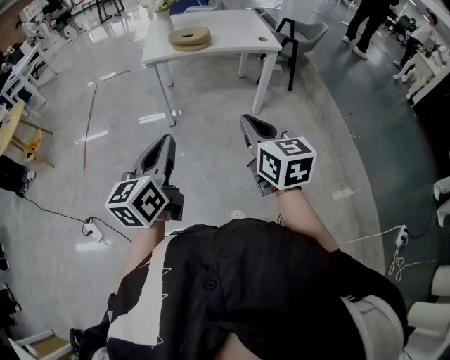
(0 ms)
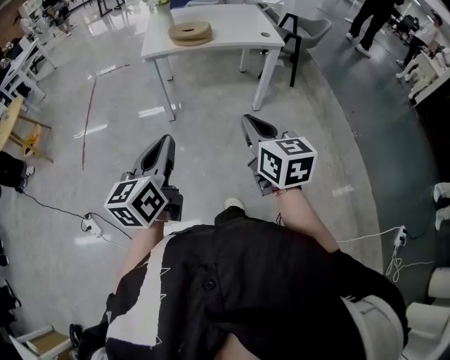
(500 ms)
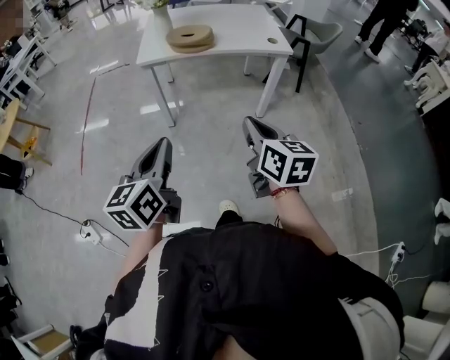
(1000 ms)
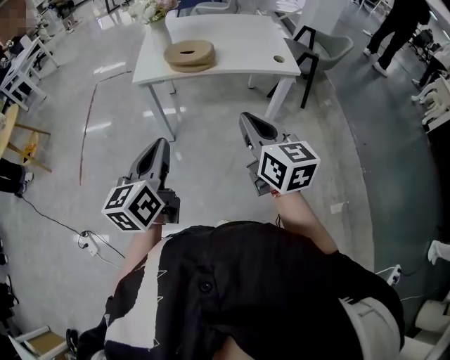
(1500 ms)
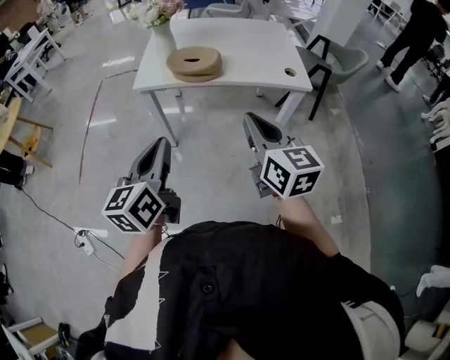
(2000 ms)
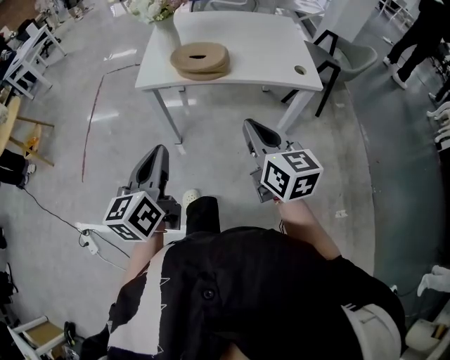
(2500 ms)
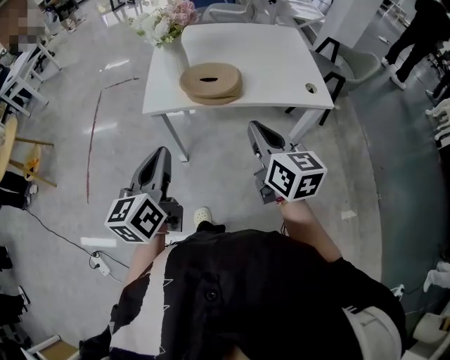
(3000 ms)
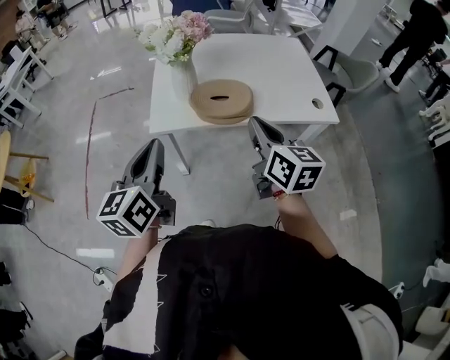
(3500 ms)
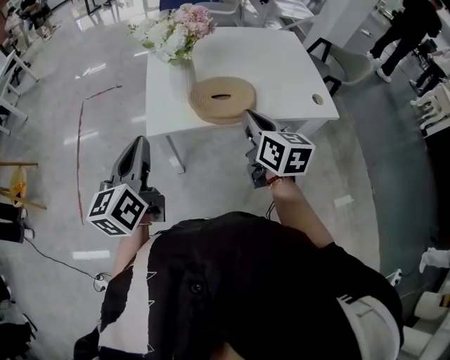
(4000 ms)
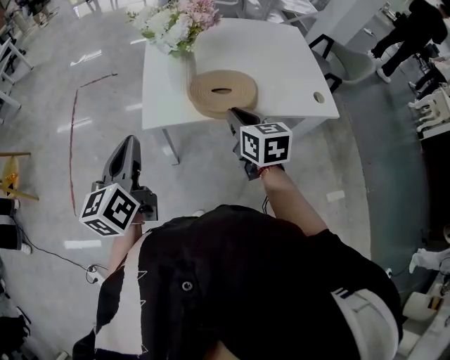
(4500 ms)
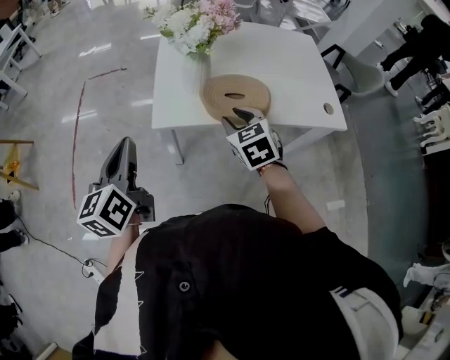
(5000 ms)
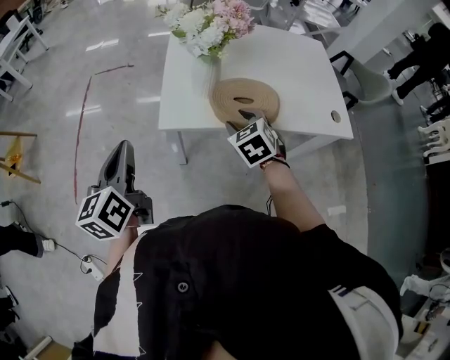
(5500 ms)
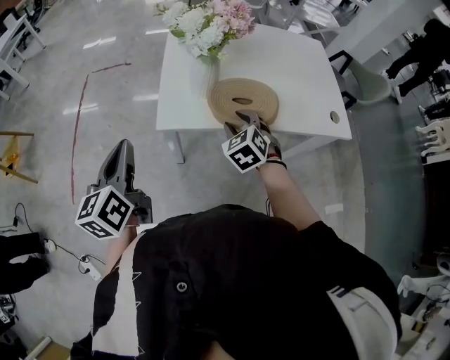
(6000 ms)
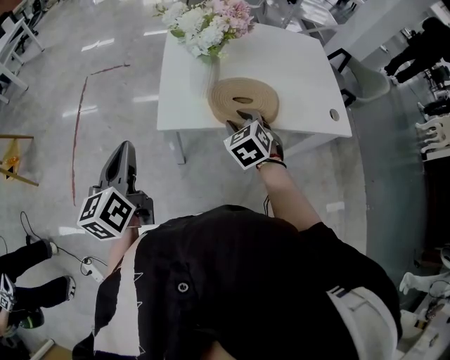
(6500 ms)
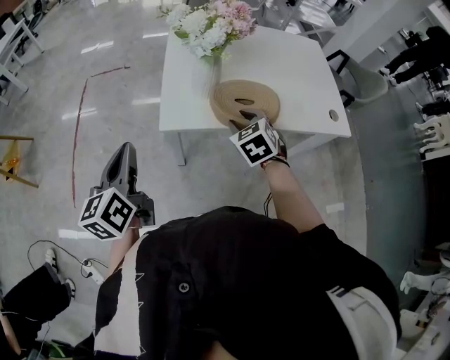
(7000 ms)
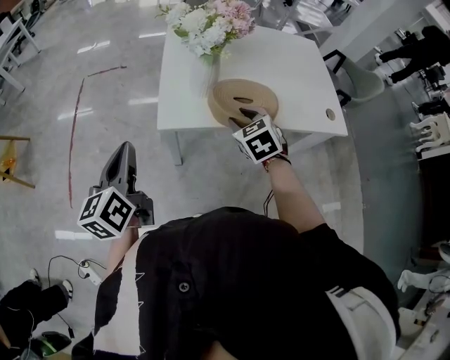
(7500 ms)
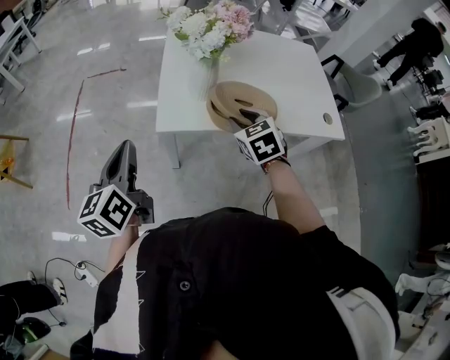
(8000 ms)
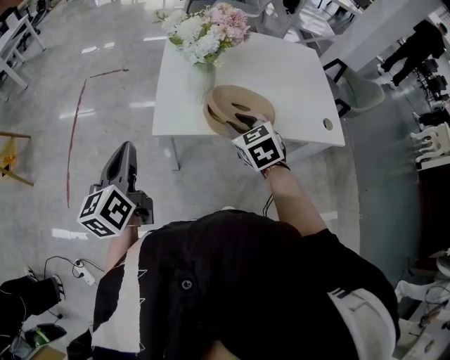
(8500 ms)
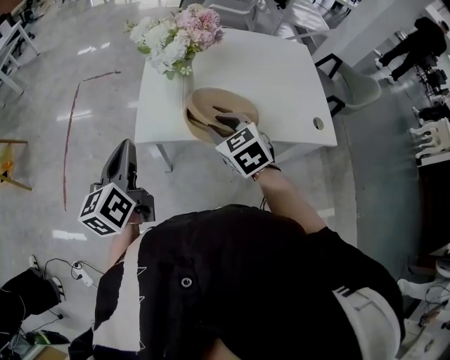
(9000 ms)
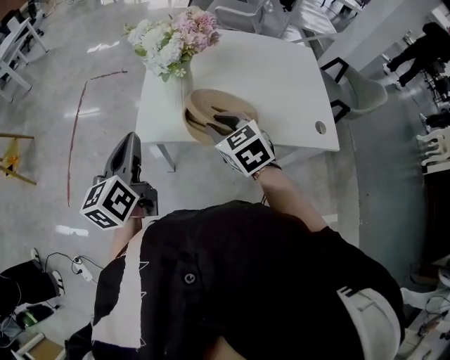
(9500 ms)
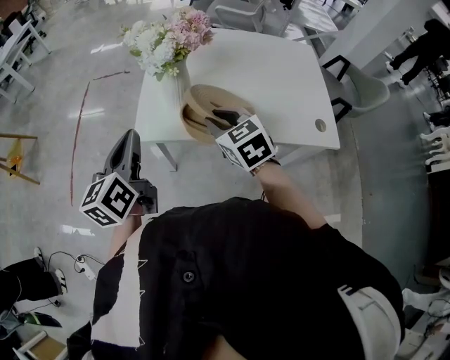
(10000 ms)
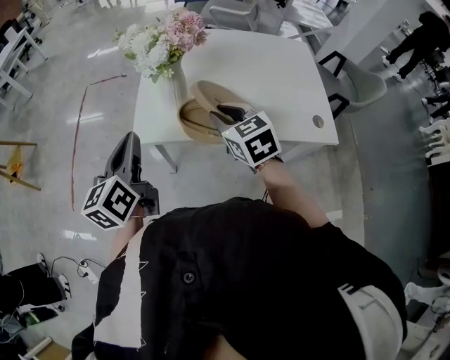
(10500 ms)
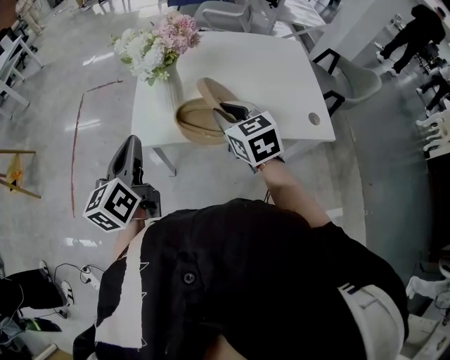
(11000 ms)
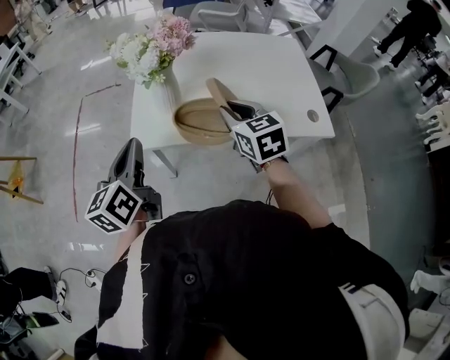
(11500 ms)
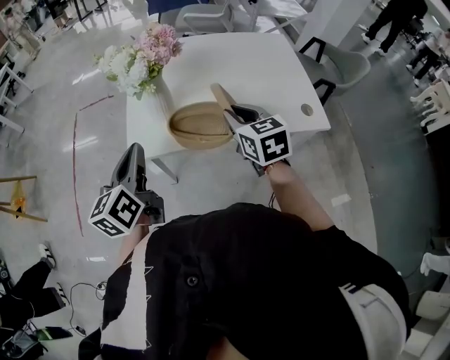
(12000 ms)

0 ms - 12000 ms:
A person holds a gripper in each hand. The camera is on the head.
0 ms - 2000 ms: The grippers both shift forward by about 30 cm.
2000 ms - 4000 ms: Both grippers travel together forward and to the left, some 30 cm.
4000 ms - 6000 ms: The left gripper goes some 10 cm to the left; the right gripper is displaced downward, forward and to the left by about 15 cm, rotates around the line of its fingers by roughly 50 degrees, counterclockwise from behind, and opens.
6000 ms - 8000 ms: The right gripper ends up about 5 cm from where it was.
8000 ms - 10000 ms: The right gripper moves about 5 cm. Meanwhile the left gripper shifts roughly 10 cm to the right.
10000 ms - 12000 ms: The right gripper moves to the right, about 10 cm, and swivels about 20 degrees.

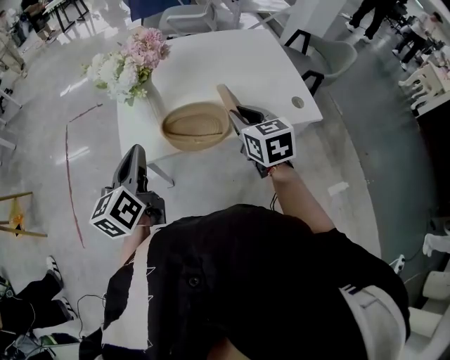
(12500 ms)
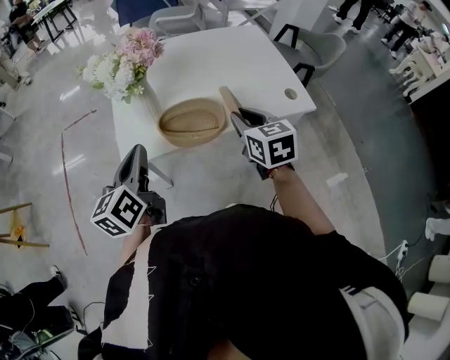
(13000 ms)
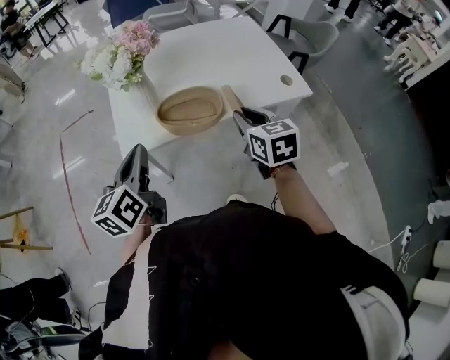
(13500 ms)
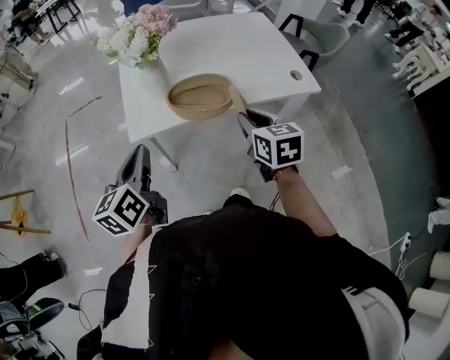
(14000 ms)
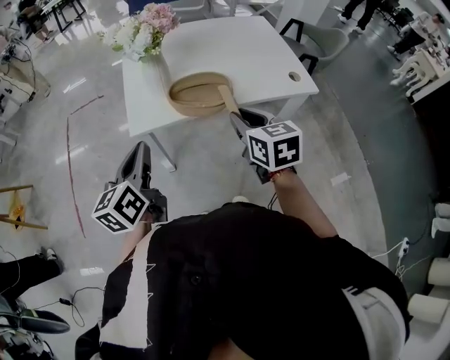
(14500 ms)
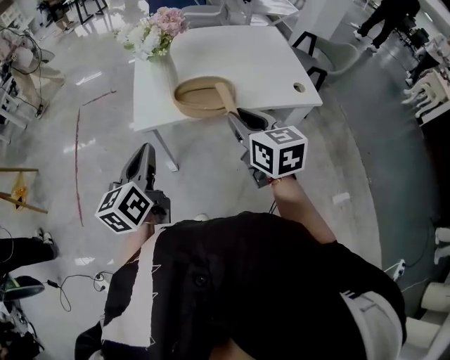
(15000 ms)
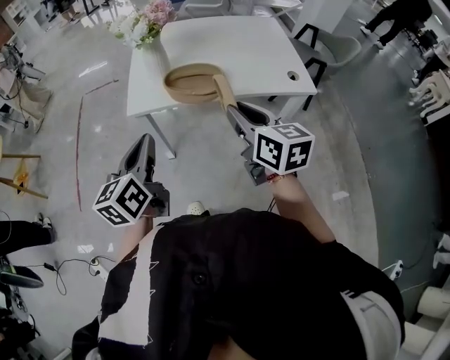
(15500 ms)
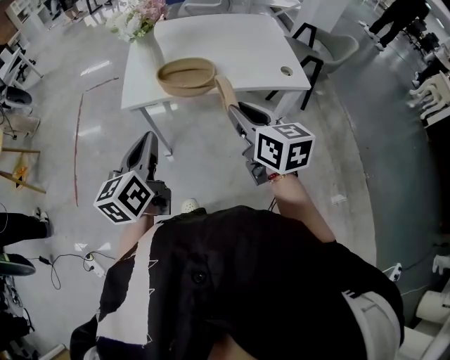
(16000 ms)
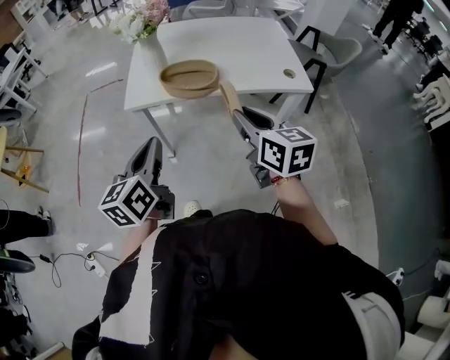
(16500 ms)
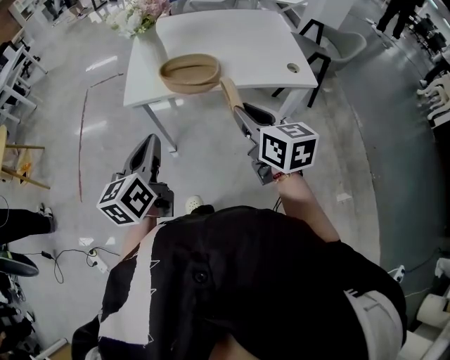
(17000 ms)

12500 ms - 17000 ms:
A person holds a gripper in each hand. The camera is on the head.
12500 ms - 14500 ms: The two grippers go about 10 cm backward.
14500 ms - 17000 ms: Both grippers move backward and to the right, roughly 15 cm.

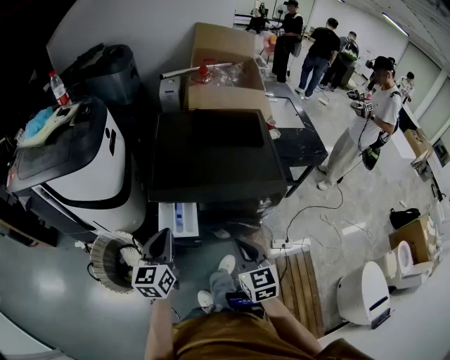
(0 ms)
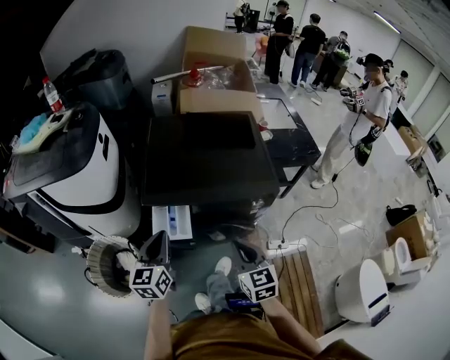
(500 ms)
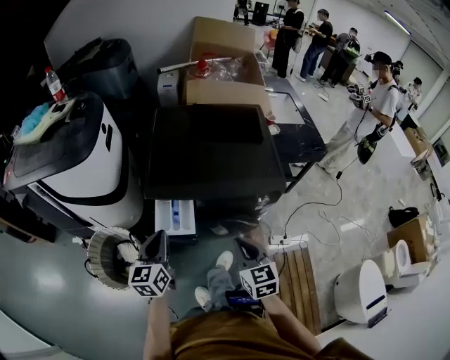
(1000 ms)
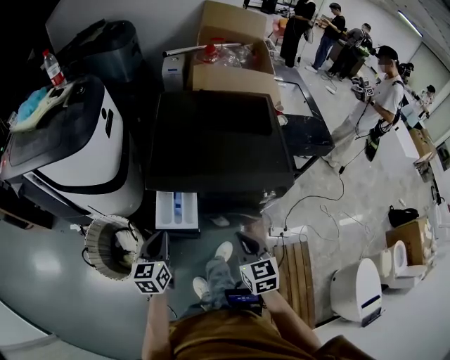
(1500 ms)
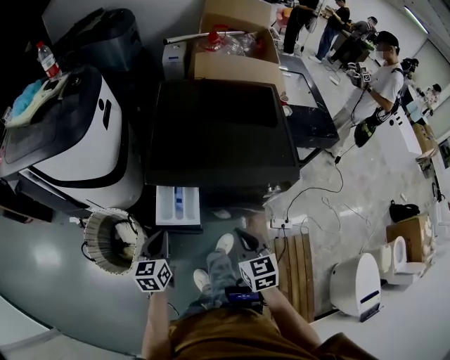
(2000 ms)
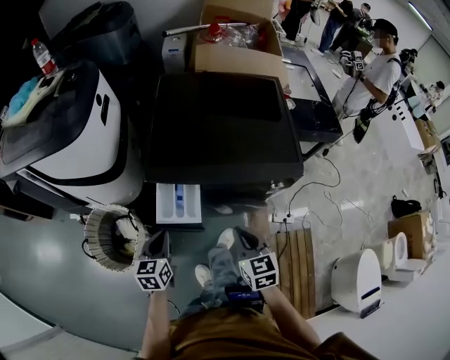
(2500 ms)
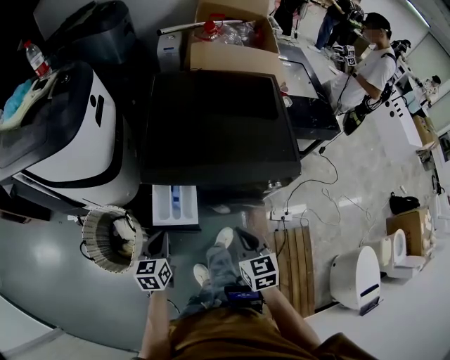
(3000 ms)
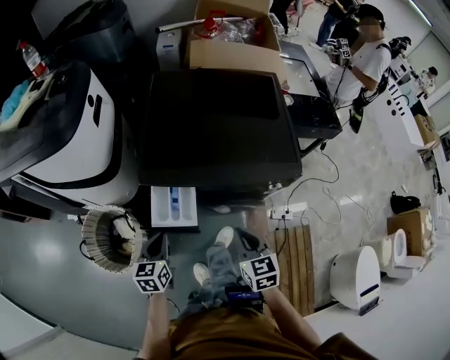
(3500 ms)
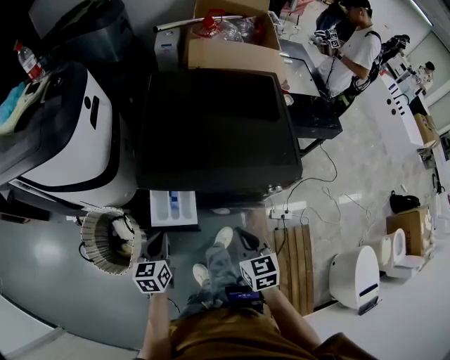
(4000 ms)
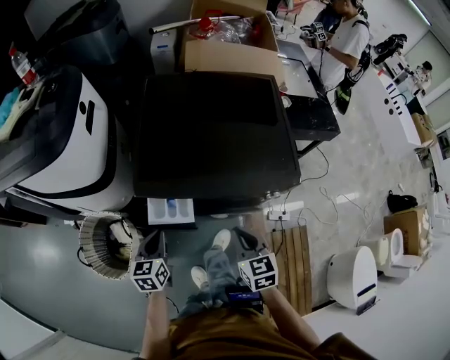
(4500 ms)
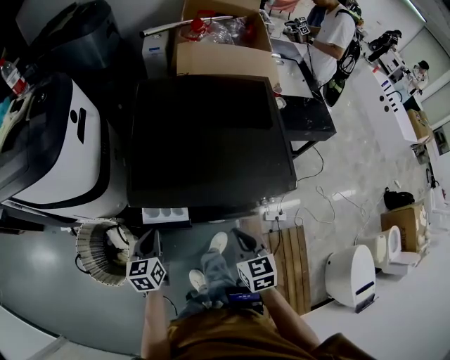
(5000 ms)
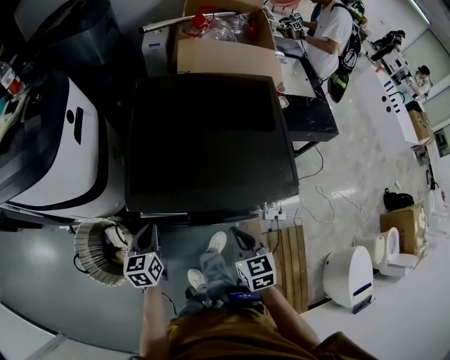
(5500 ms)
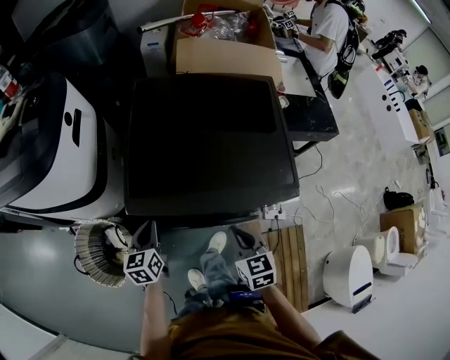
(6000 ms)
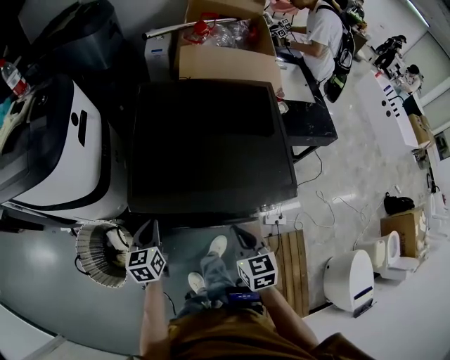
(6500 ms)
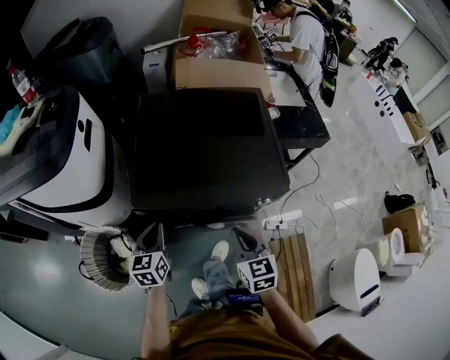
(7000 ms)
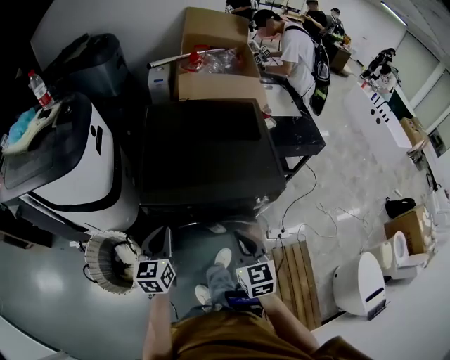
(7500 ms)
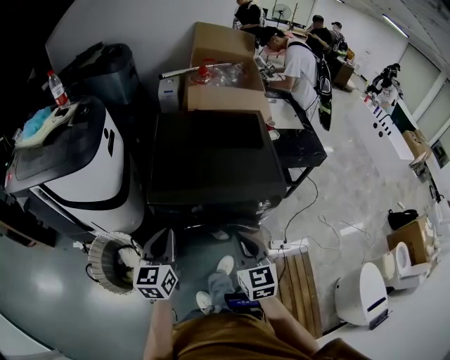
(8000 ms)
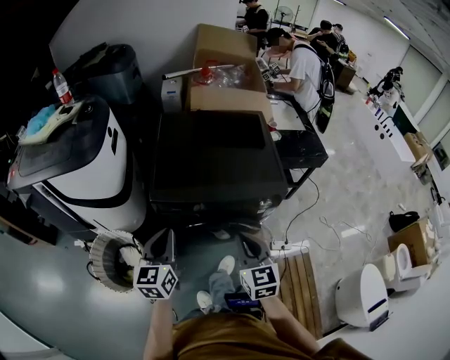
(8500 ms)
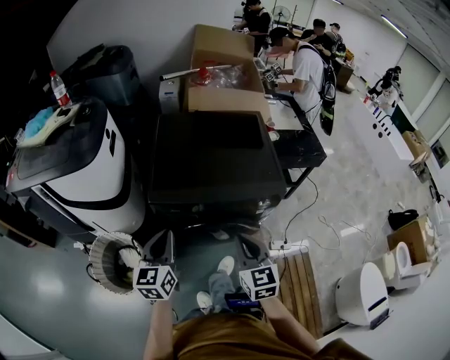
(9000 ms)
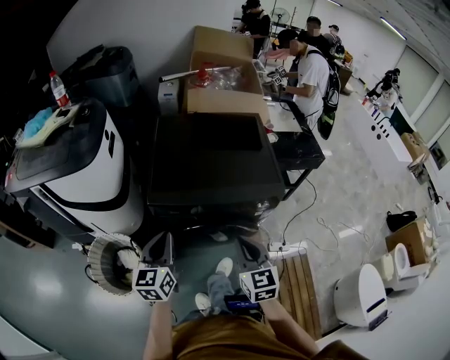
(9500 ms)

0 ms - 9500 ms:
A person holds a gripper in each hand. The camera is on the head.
0 ms - 2000 ms: The left gripper moves downward, some 15 cm. Meanwhile the right gripper travels downward by roughly 5 cm.
2000 ms - 4000 ms: The grippers make only small movements.
4000 ms - 5500 ms: The two grippers go approximately 10 cm forward.
5500 ms - 7500 ms: The two grippers go approximately 15 cm upward and backward.
7500 ms - 9500 ms: The left gripper is displaced backward by about 5 cm.

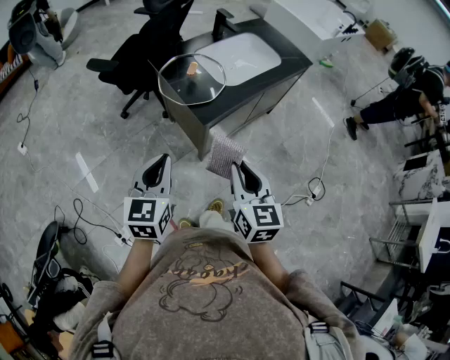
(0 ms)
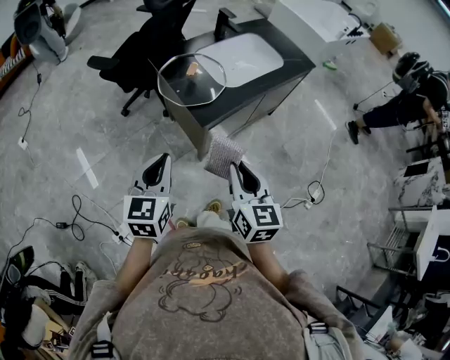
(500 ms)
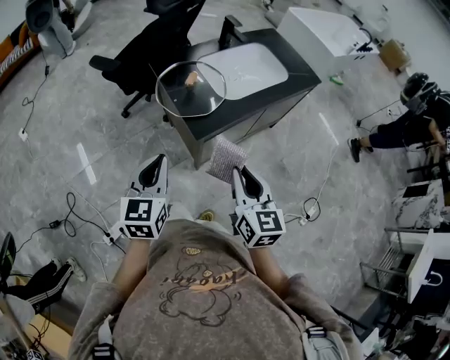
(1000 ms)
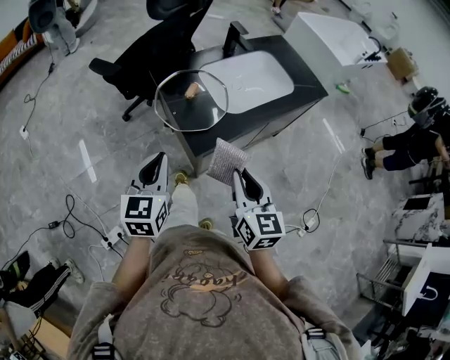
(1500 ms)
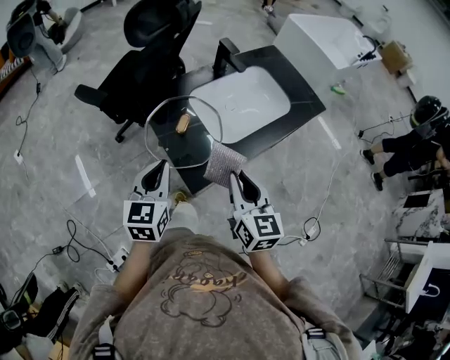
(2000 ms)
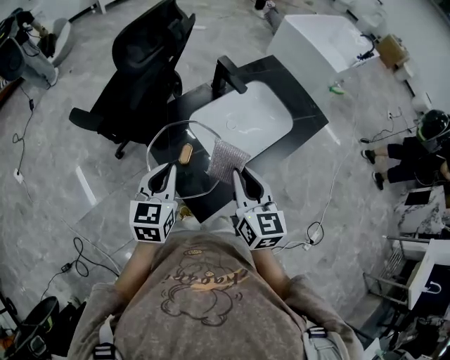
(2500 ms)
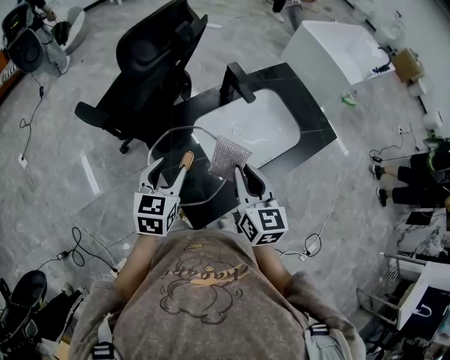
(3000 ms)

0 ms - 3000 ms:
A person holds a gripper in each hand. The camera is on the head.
0 ms - 1500 ms: The right gripper moves forward and to the right, roughly 15 cm. Meanwhile the left gripper is displaced forward by some 15 cm.
1500 ms - 3000 ms: Both grippers travel together forward, about 30 cm. The left gripper opens up.
